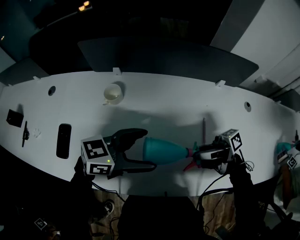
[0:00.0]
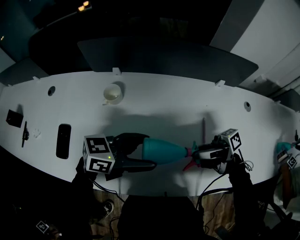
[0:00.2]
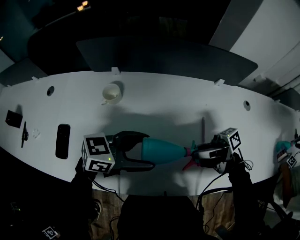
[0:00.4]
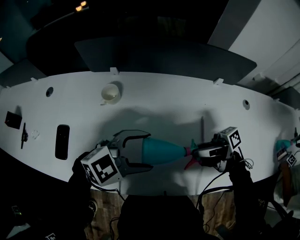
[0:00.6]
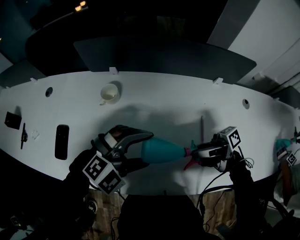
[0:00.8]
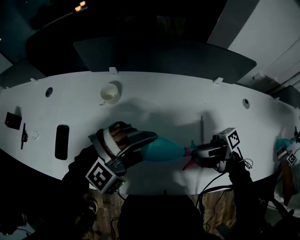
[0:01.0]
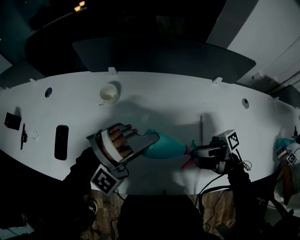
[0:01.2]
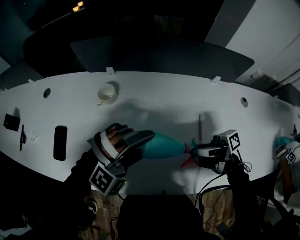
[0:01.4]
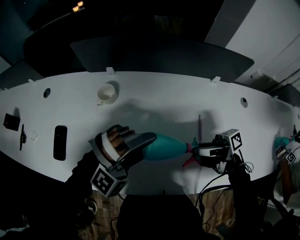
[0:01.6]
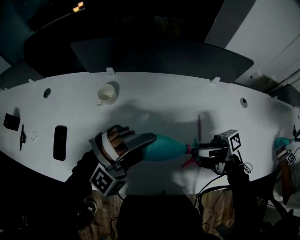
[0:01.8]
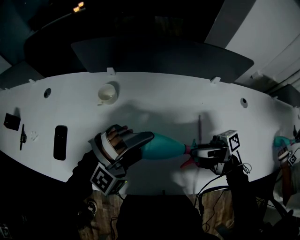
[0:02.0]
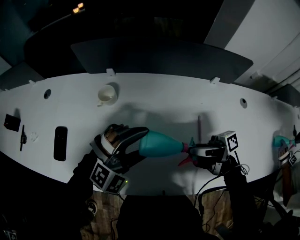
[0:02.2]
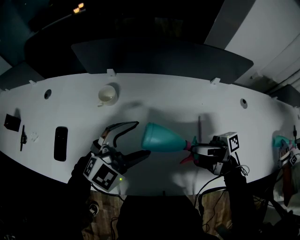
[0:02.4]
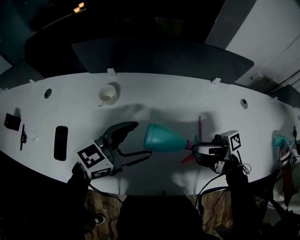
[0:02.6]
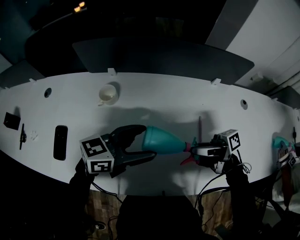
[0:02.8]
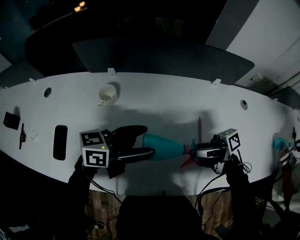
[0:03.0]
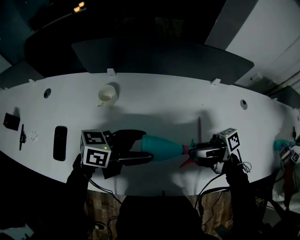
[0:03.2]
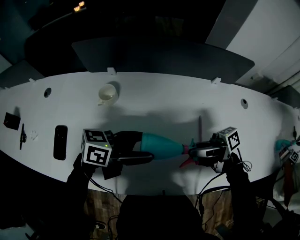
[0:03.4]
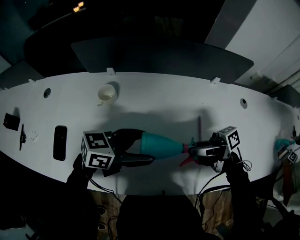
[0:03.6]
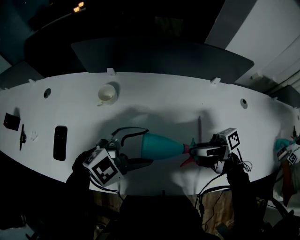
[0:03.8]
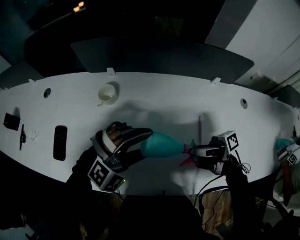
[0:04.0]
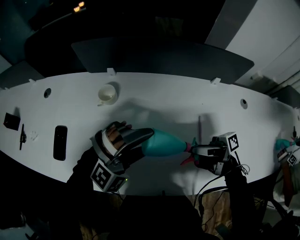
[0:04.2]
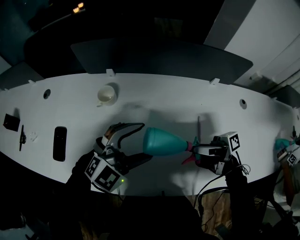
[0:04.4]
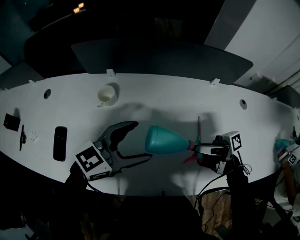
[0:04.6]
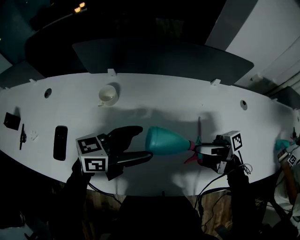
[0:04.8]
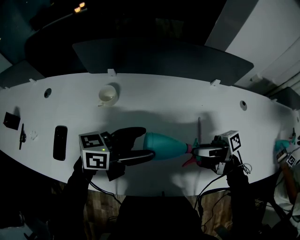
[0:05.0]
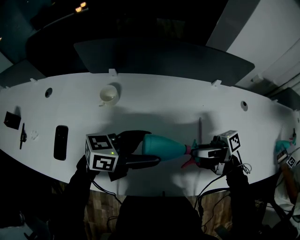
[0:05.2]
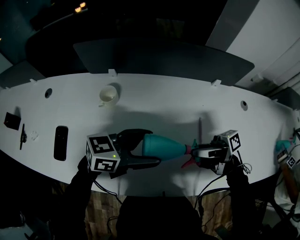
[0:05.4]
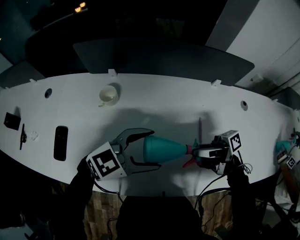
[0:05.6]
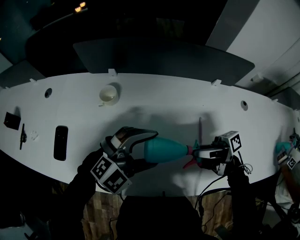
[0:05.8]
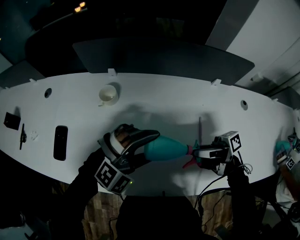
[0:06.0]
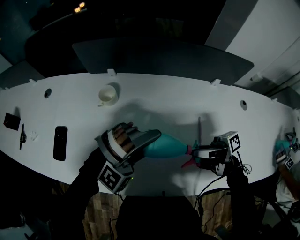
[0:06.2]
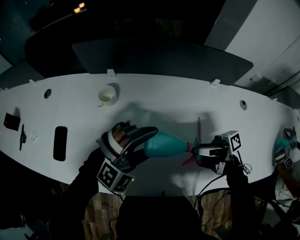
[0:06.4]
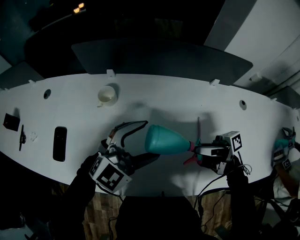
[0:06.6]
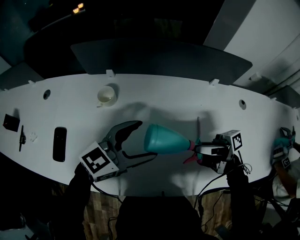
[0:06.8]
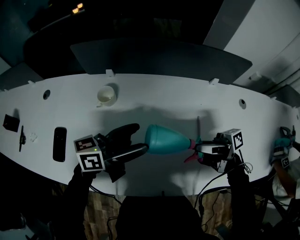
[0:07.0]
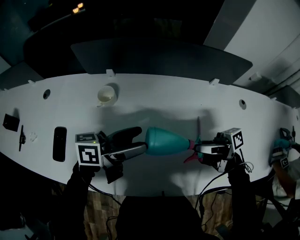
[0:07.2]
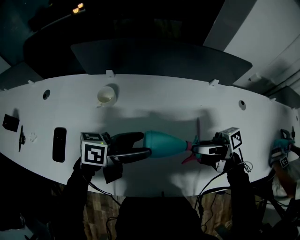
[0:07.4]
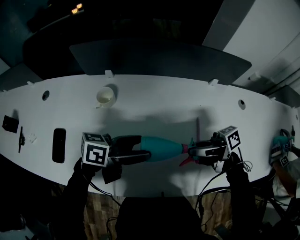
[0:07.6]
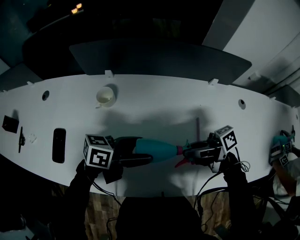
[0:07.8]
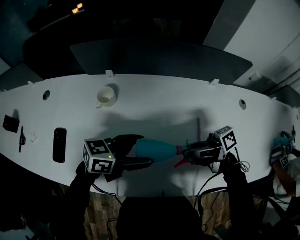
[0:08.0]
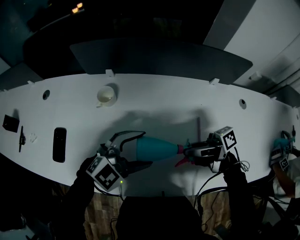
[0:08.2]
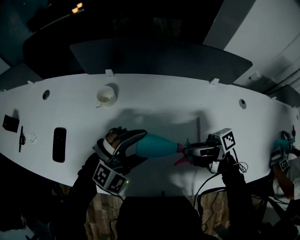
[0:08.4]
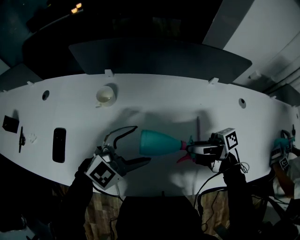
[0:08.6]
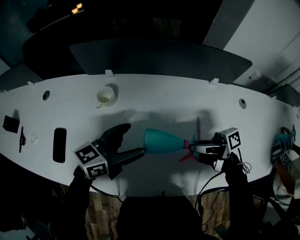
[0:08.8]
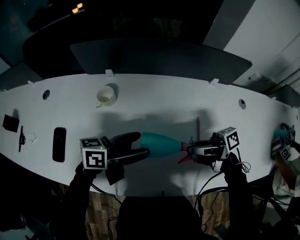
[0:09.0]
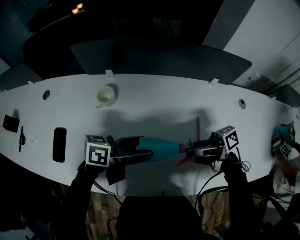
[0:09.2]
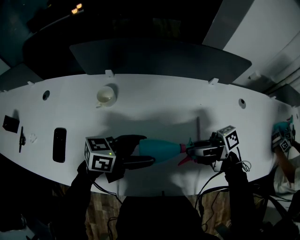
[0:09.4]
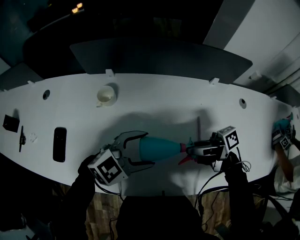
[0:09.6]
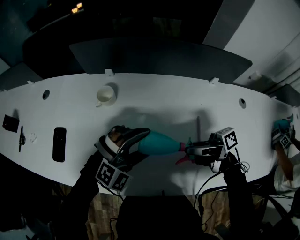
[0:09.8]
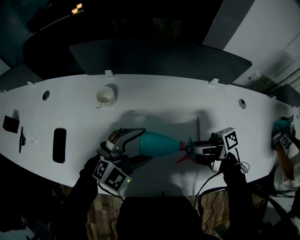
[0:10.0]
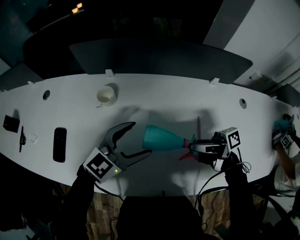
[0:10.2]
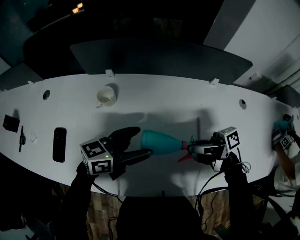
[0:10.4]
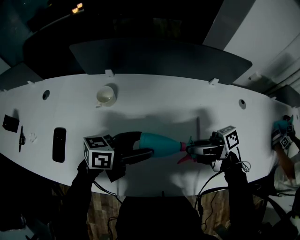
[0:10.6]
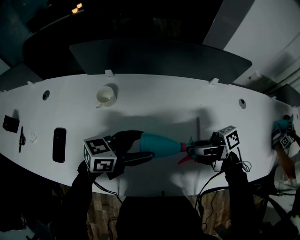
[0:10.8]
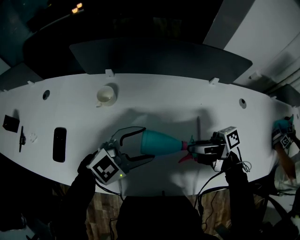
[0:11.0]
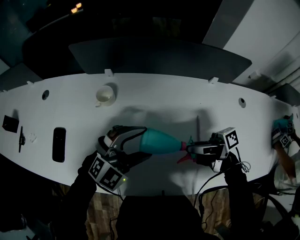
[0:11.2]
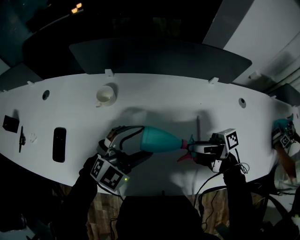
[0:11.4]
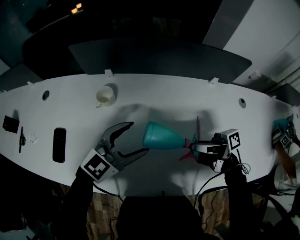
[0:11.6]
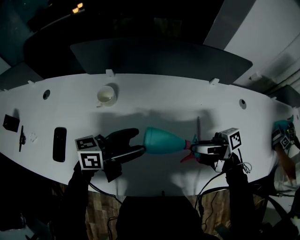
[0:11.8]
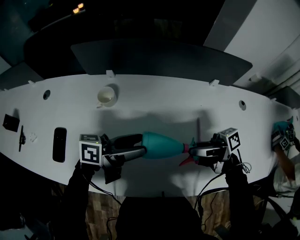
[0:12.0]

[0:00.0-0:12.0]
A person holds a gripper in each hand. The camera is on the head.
0:00.0 to 0:01.6: The left gripper rotates around the line of its fingers by some 90 degrees, clockwise from behind.
0:01.6 to 0:03.0: The left gripper twists some 110 degrees counterclockwise, seen from behind.
0:03.0 to 0:04.4: The left gripper rolls clockwise, seen from behind, by some 70 degrees.
0:04.4 to 0:06.0: The left gripper swivels some 30 degrees.
0:06.0 to 0:07.6: The left gripper rolls counterclockwise, seen from behind, by about 110 degrees.
0:10.4 to 0:12.0: The left gripper rotates approximately 30 degrees.

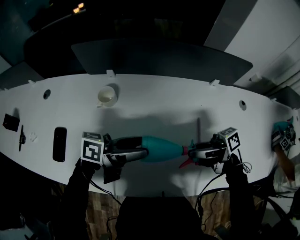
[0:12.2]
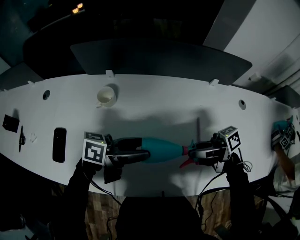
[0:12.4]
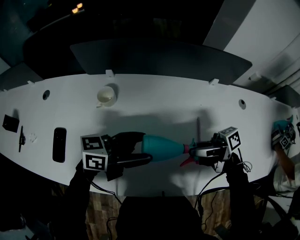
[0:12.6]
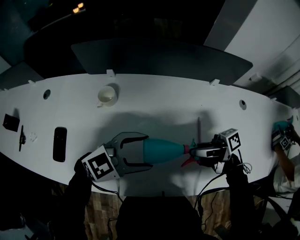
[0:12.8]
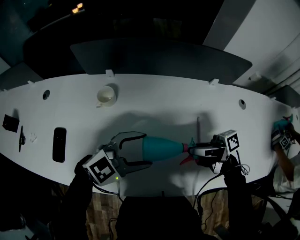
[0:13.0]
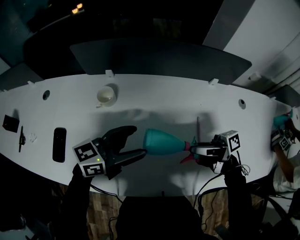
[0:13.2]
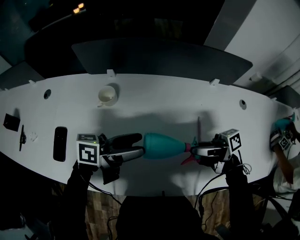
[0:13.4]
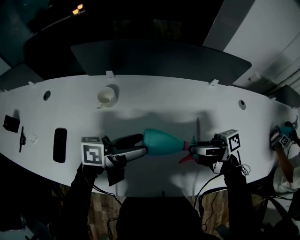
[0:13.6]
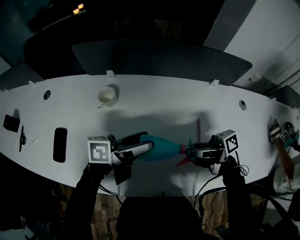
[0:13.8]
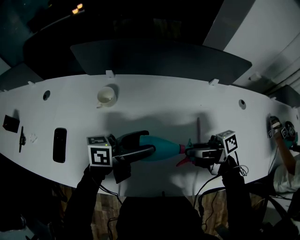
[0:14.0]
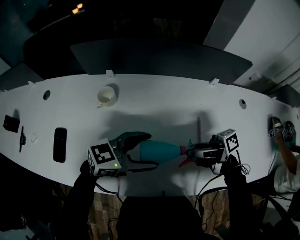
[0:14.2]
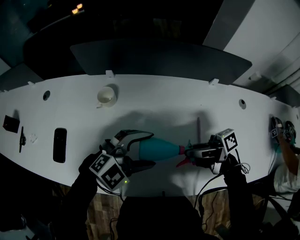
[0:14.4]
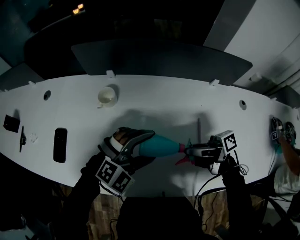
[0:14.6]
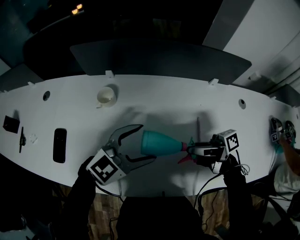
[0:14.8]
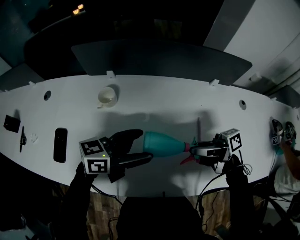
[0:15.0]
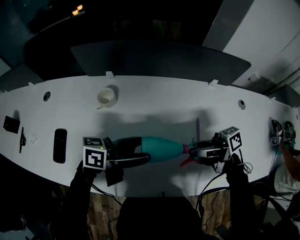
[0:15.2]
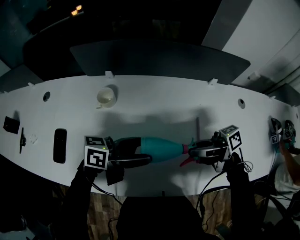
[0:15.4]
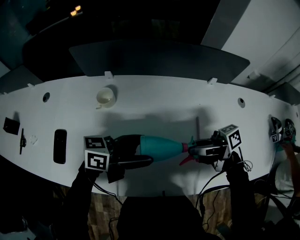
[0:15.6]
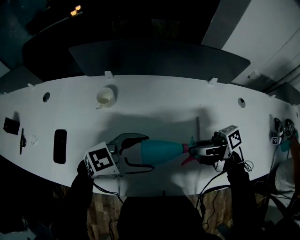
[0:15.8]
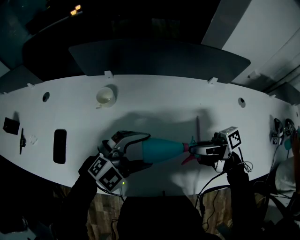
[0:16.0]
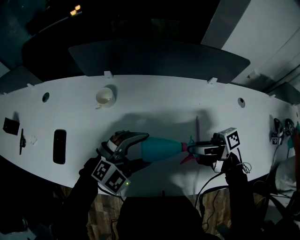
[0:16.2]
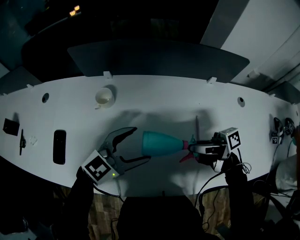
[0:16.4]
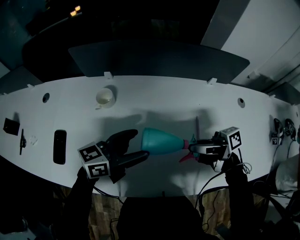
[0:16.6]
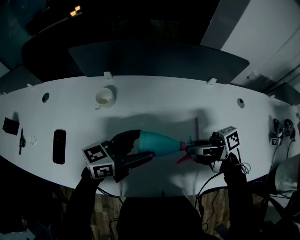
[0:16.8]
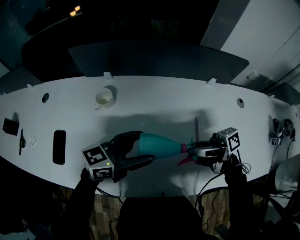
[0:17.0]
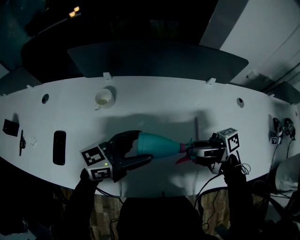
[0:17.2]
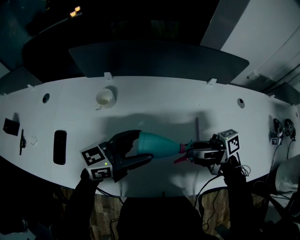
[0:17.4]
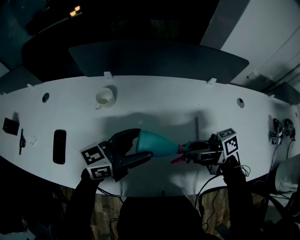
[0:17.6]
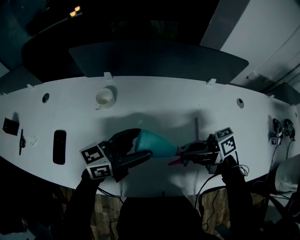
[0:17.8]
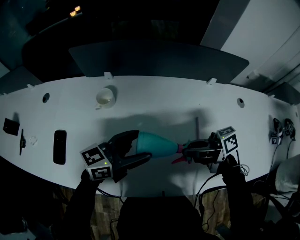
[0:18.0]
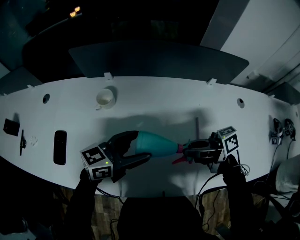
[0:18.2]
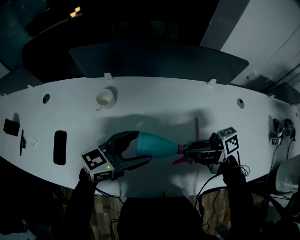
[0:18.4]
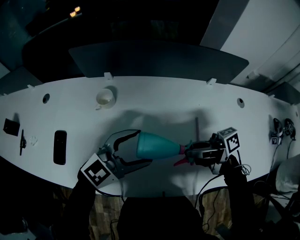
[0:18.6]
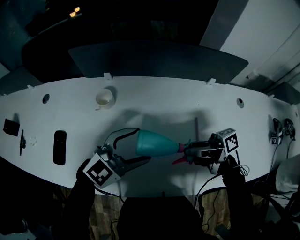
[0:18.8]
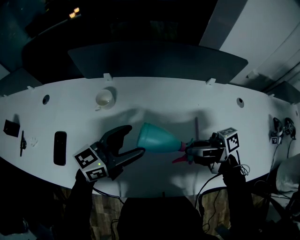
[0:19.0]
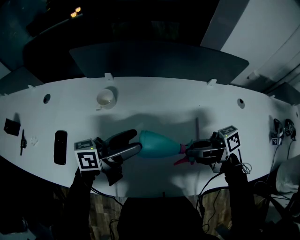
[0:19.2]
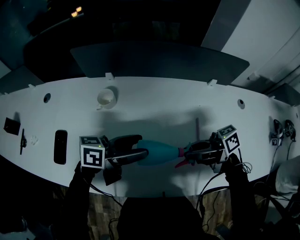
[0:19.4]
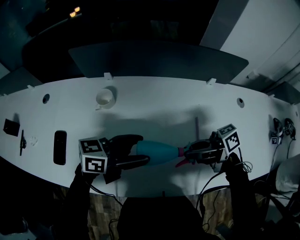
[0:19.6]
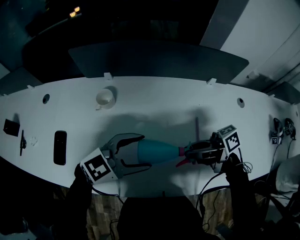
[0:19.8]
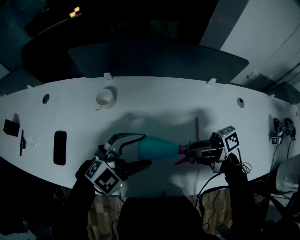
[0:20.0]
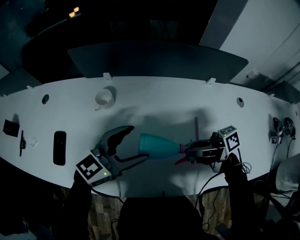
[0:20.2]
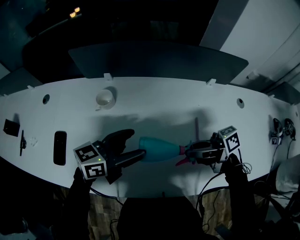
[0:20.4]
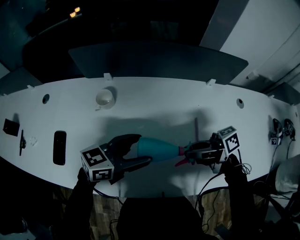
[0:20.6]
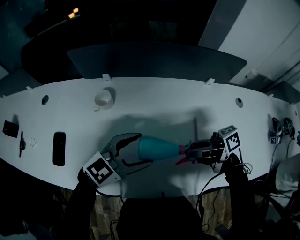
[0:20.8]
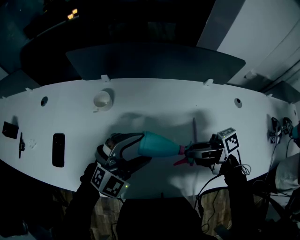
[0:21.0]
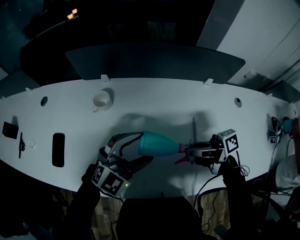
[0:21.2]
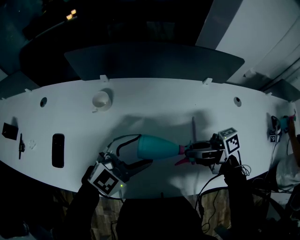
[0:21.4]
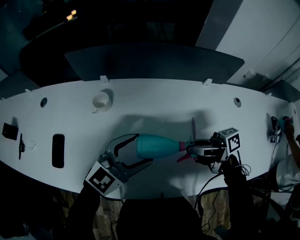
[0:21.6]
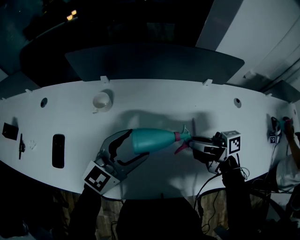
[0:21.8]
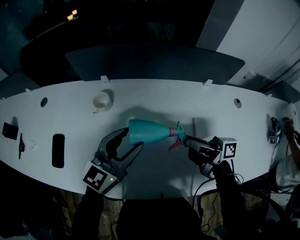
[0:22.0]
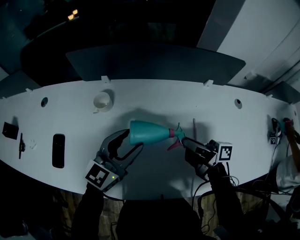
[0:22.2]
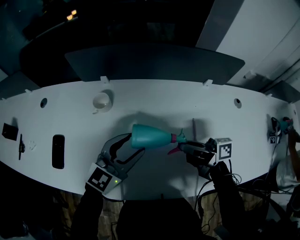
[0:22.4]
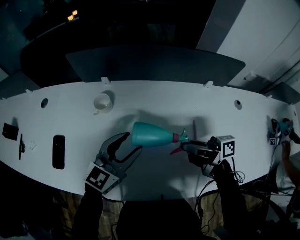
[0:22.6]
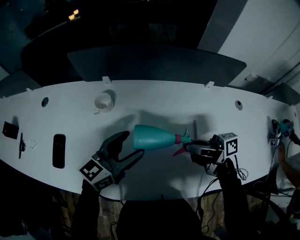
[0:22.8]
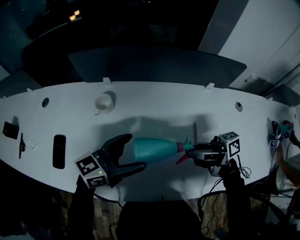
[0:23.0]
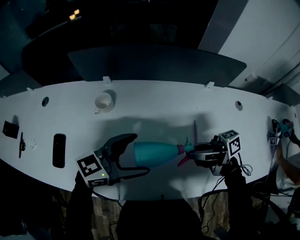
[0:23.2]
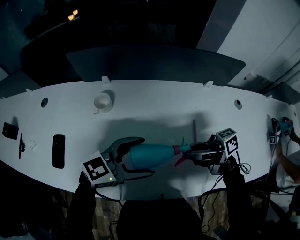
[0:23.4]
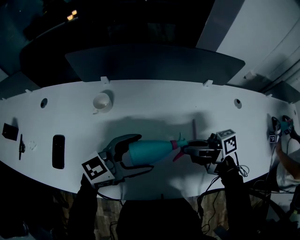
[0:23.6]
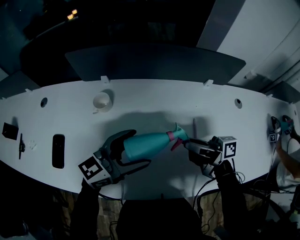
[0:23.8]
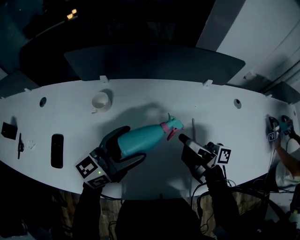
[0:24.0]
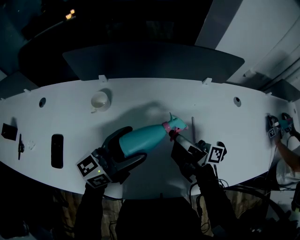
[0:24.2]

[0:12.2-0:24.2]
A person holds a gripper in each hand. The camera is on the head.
0:15.2 to 0:16.6: The left gripper swivels some 20 degrees.
0:16.6 to 0:18.2: The grippers move only a little.
0:18.2 to 0:19.8: The left gripper rotates about 30 degrees.
0:19.8 to 0:21.2: The left gripper changes its angle by roughly 30 degrees.
0:21.2 to 0:22.6: The left gripper moves approximately 5 cm, and changes its angle by roughly 40 degrees.
0:22.6 to 0:24.2: The right gripper changes its angle by approximately 30 degrees, and opens its fingers. Meanwhile the left gripper changes its angle by about 30 degrees, and opens its fingers.
